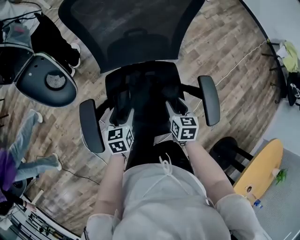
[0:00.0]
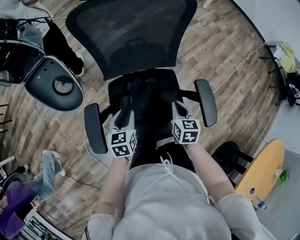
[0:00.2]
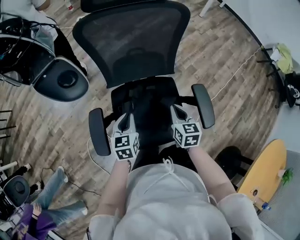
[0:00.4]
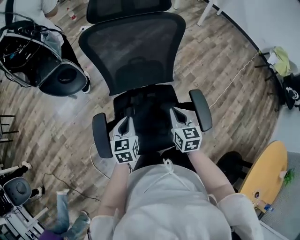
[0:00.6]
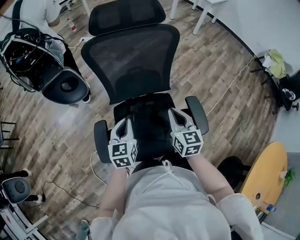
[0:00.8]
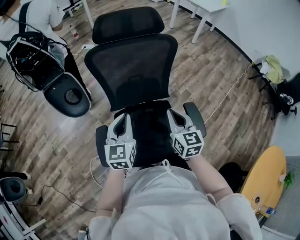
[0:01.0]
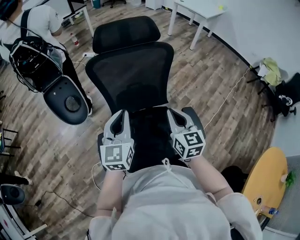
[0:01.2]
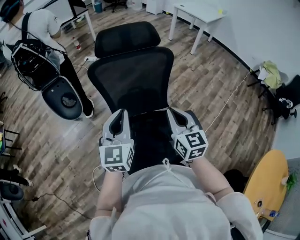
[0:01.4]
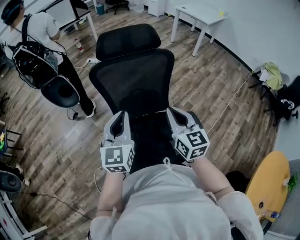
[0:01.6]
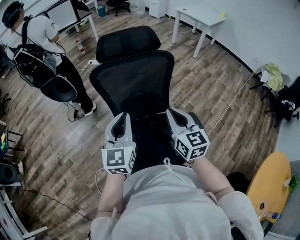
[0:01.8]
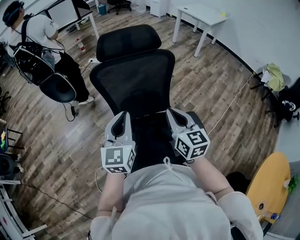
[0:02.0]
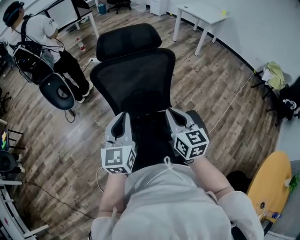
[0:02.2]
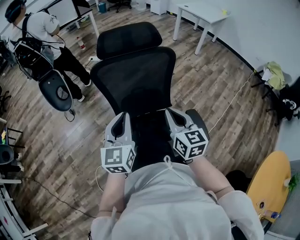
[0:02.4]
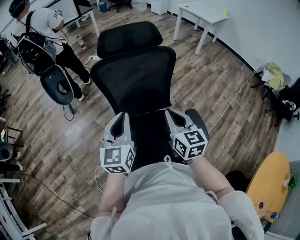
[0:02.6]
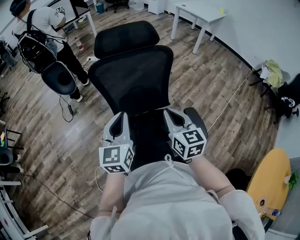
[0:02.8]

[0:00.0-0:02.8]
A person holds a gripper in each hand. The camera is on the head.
0:00.0 to 0:01.4: The grippers both shift upward by about 40 cm. The right gripper tips its fingers upward by some 40 degrees, and closes its fingers. The left gripper points its fingers some 40 degrees further upward, and closes.
0:01.4 to 0:02.8: The grippers stay close to where they were, moving slightly.

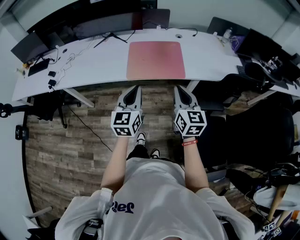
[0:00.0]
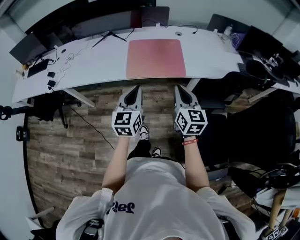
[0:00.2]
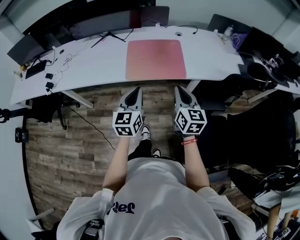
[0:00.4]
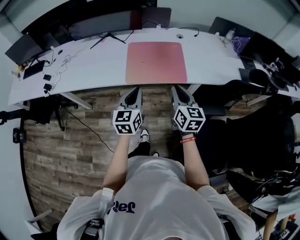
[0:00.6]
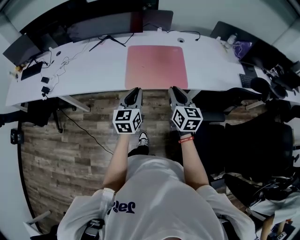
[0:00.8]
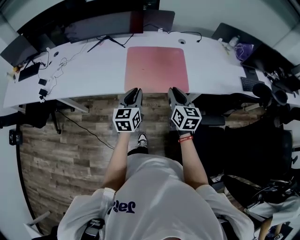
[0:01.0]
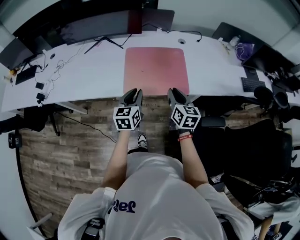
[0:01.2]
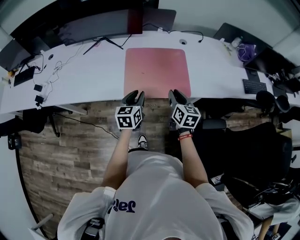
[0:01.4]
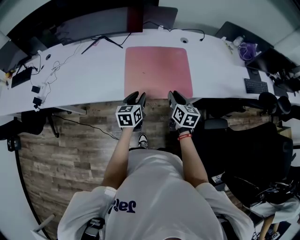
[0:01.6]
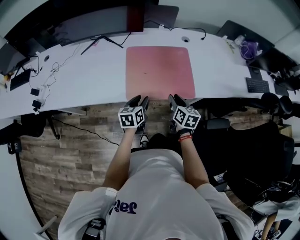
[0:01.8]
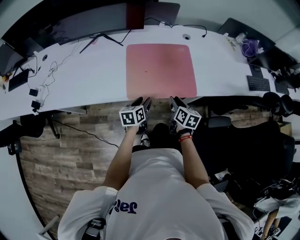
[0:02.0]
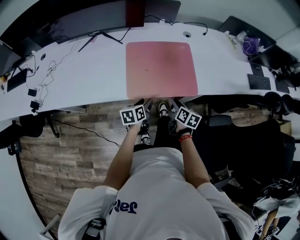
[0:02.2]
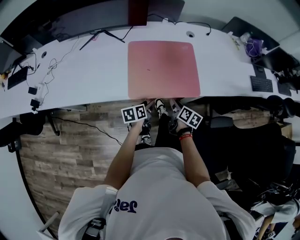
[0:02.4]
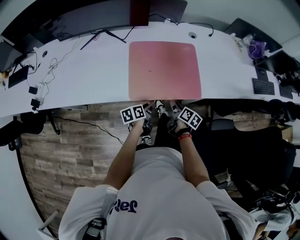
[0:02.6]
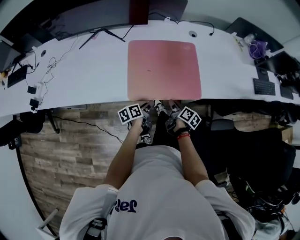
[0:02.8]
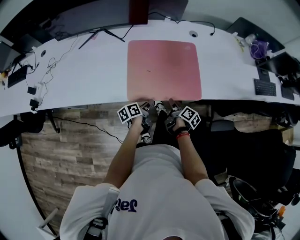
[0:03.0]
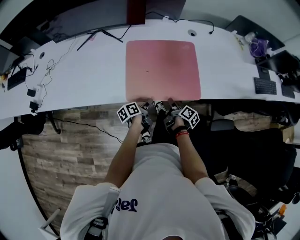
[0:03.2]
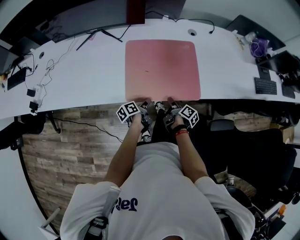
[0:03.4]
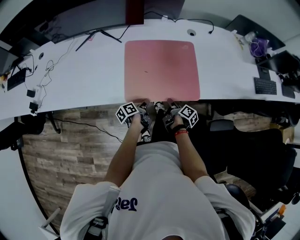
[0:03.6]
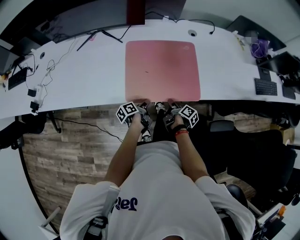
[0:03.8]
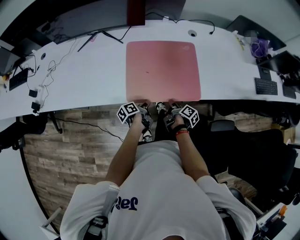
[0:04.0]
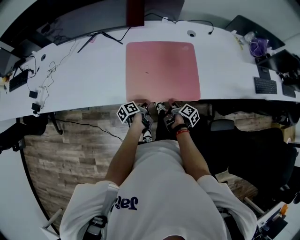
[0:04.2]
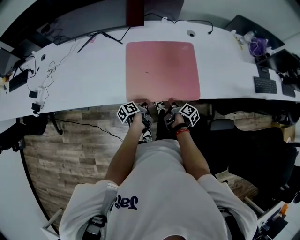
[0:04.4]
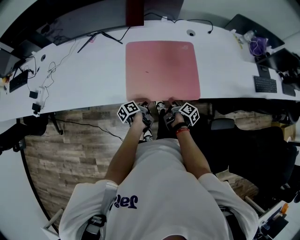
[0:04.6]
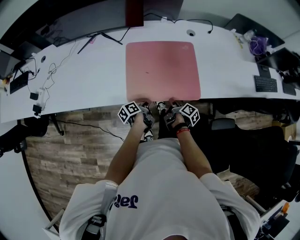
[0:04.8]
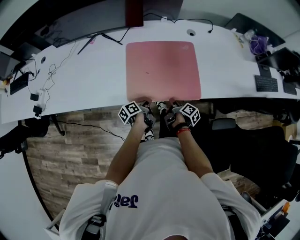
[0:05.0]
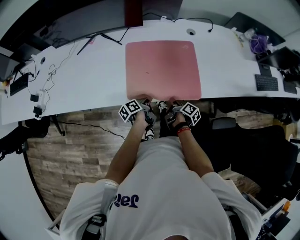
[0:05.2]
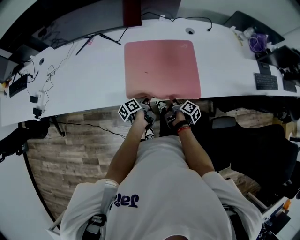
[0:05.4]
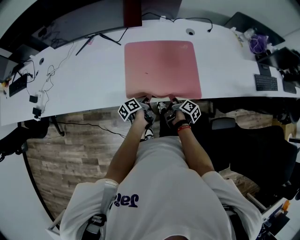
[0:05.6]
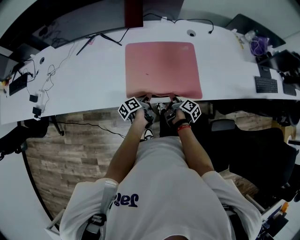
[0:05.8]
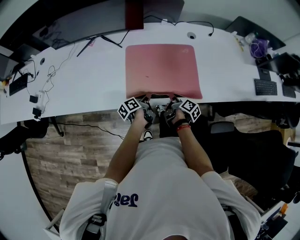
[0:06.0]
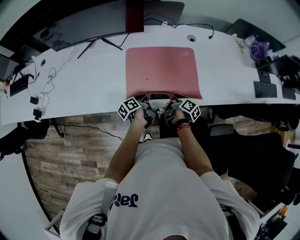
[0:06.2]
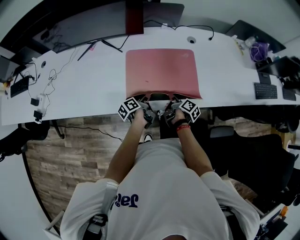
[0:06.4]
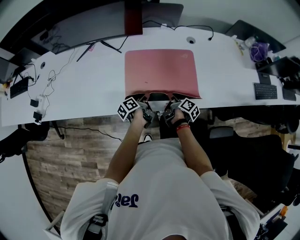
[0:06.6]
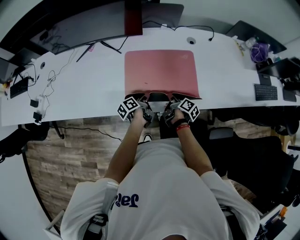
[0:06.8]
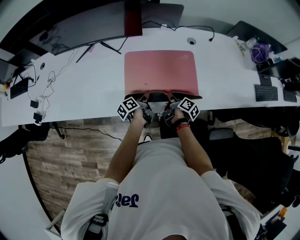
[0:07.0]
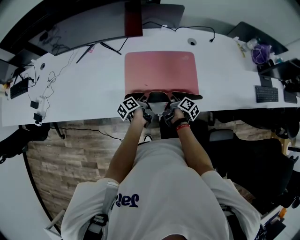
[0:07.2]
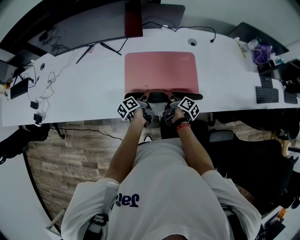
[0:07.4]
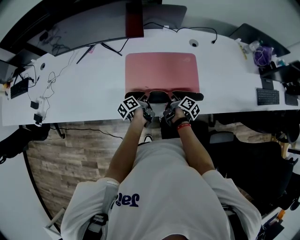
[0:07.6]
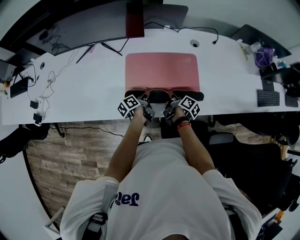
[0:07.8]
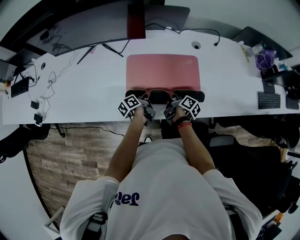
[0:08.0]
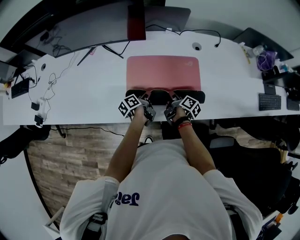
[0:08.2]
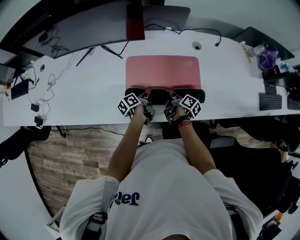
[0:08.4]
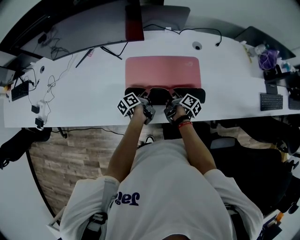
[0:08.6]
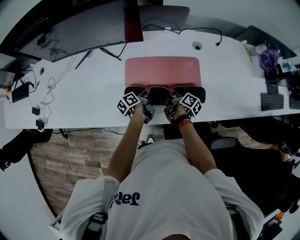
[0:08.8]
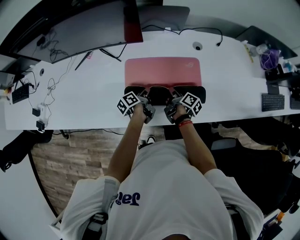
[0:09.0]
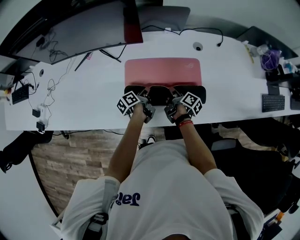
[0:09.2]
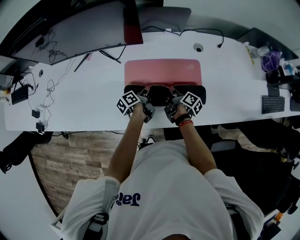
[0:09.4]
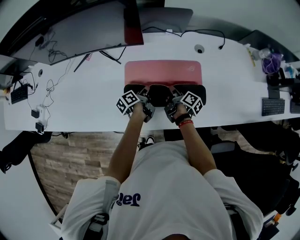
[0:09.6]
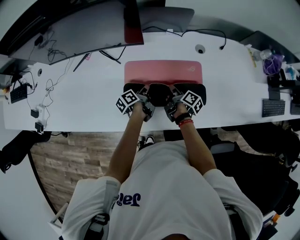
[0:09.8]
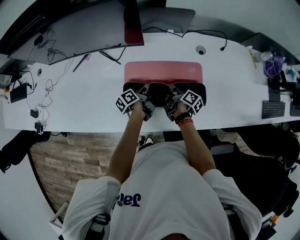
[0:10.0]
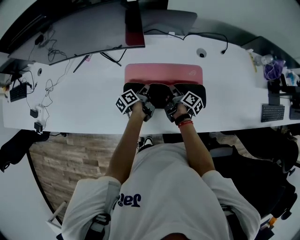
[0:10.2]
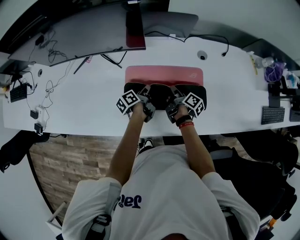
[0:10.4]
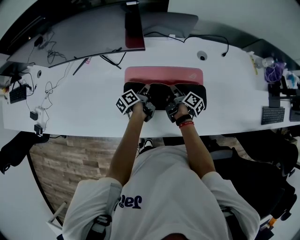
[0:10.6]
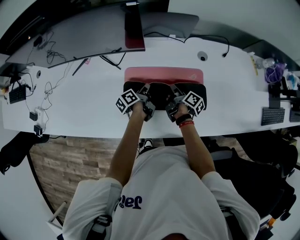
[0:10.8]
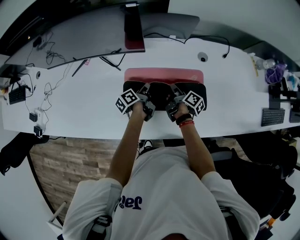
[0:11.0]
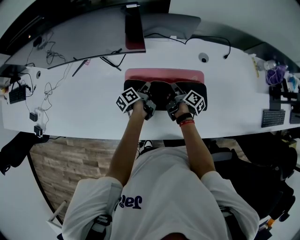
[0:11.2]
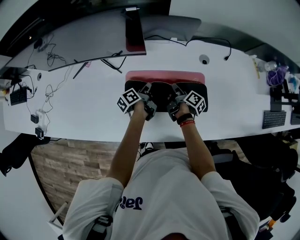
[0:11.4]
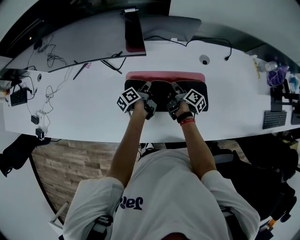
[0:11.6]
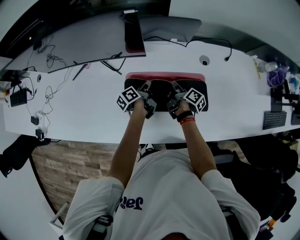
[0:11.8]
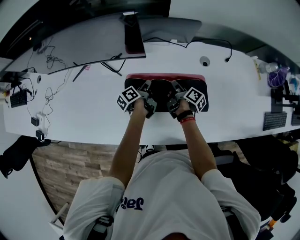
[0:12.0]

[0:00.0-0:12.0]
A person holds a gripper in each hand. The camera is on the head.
0:00.0 to 0:01.6: The right gripper moves roughly 35 cm, changes its angle by approximately 20 degrees, and opens.
0:01.6 to 0:03.0: The right gripper heads downward, covering about 20 cm, and twists about 50 degrees clockwise, seen from behind.
0:03.0 to 0:04.4: The right gripper closes.
0:04.4 to 0:06.0: The right gripper shifts by approximately 5 cm.
0:06.0 to 0:07.6: The right gripper moves approximately 10 cm.
0:07.6 to 0:09.0: The right gripper shifts by approximately 10 cm.
0:09.0 to 0:10.4: The right gripper ends up roughly 10 cm from where it was.
0:10.4 to 0:12.0: The right gripper changes place by roughly 10 cm.

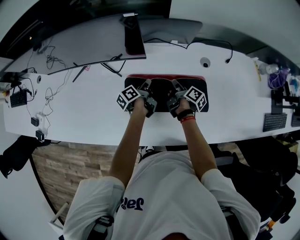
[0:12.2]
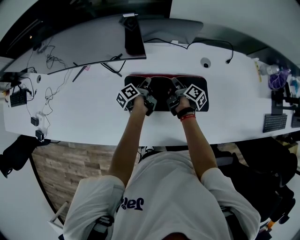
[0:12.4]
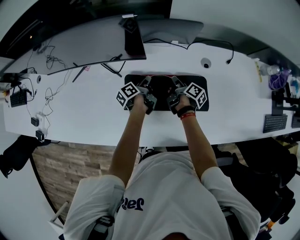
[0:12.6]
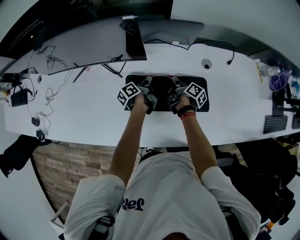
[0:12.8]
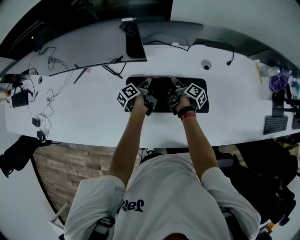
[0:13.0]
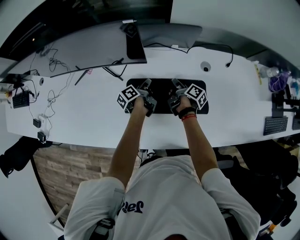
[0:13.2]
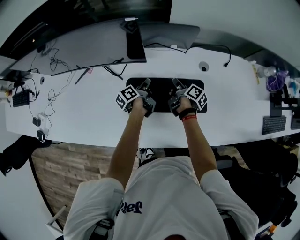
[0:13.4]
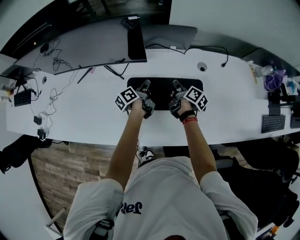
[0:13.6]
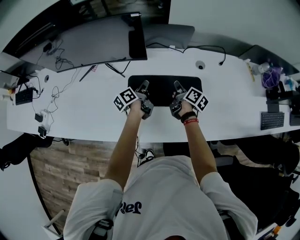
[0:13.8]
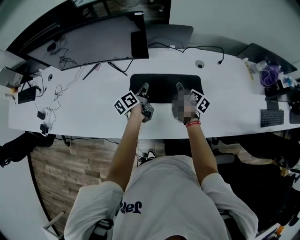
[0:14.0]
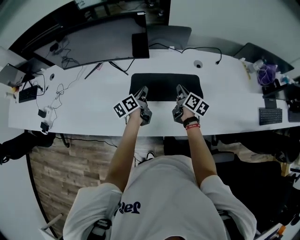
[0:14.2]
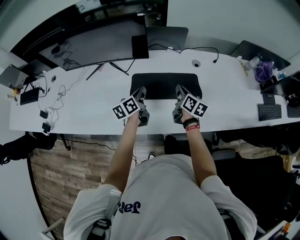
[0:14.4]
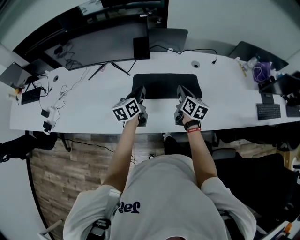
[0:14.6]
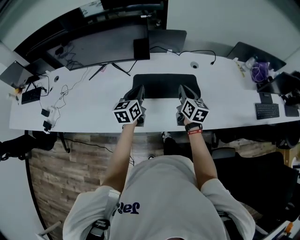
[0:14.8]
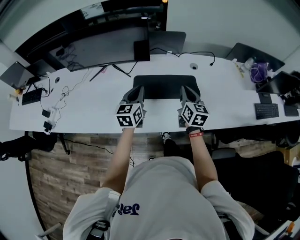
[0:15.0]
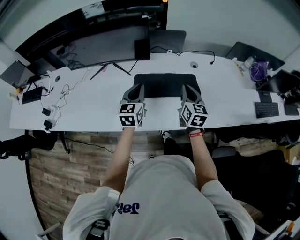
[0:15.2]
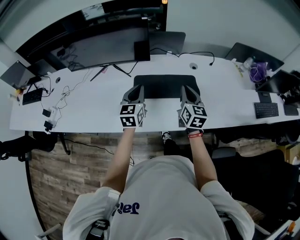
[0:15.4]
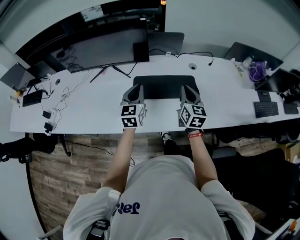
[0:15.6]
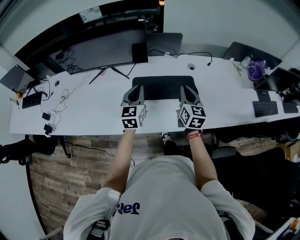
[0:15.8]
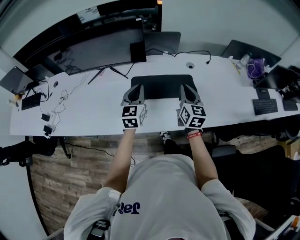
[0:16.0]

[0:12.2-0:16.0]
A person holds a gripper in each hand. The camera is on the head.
0:13.4 to 0:14.8: The right gripper ends up approximately 30 cm from where it was, and rolls counterclockwise, seen from behind, by roughly 50 degrees.
0:14.8 to 0:16.0: The right gripper shifts by about 5 cm.

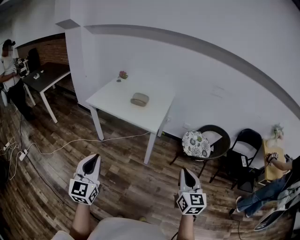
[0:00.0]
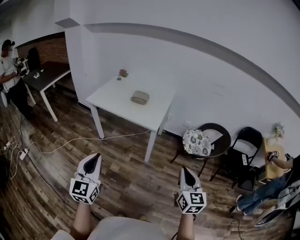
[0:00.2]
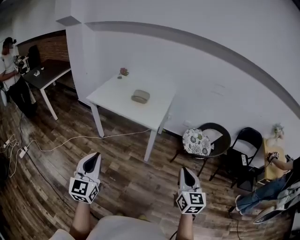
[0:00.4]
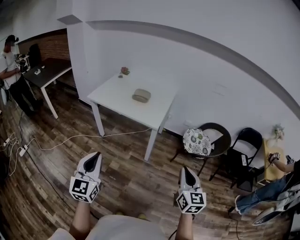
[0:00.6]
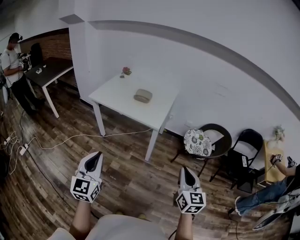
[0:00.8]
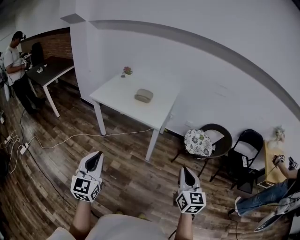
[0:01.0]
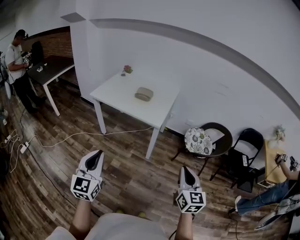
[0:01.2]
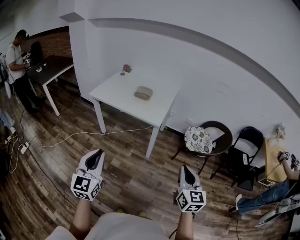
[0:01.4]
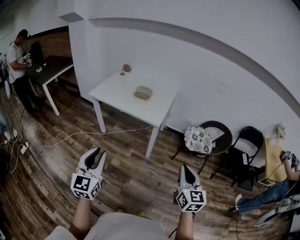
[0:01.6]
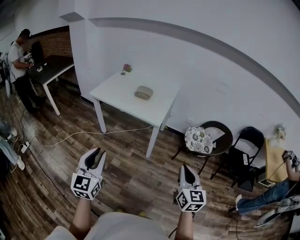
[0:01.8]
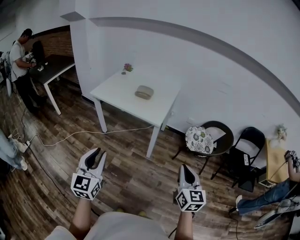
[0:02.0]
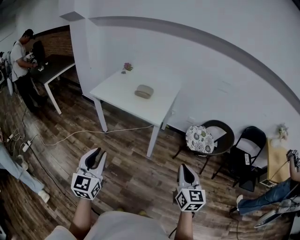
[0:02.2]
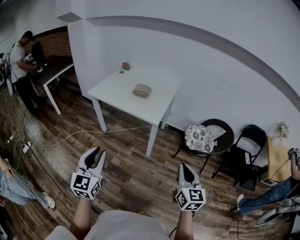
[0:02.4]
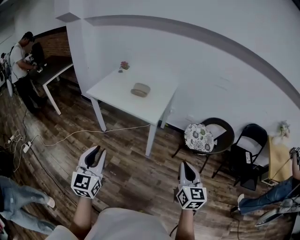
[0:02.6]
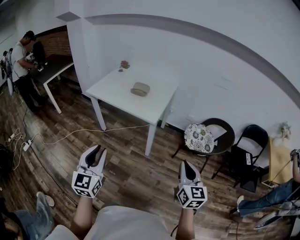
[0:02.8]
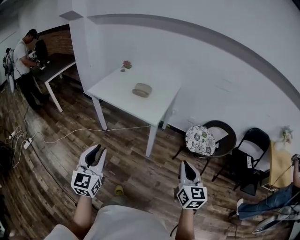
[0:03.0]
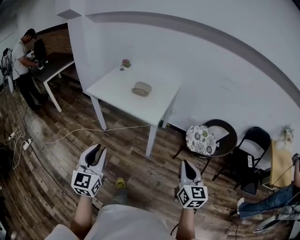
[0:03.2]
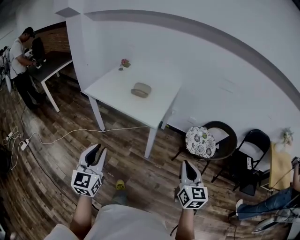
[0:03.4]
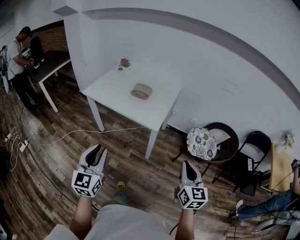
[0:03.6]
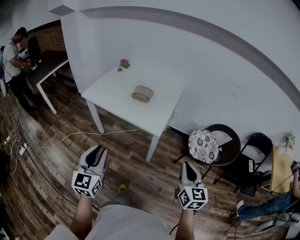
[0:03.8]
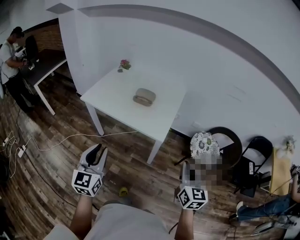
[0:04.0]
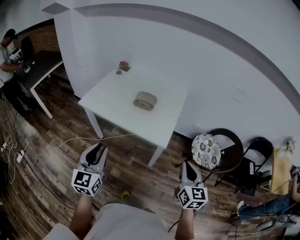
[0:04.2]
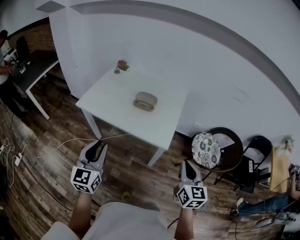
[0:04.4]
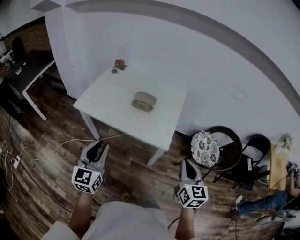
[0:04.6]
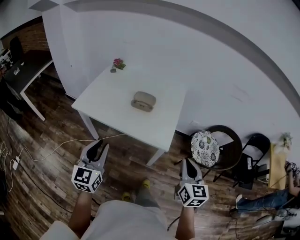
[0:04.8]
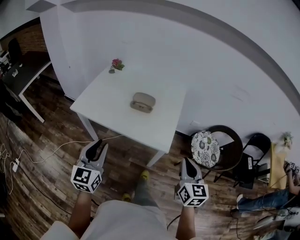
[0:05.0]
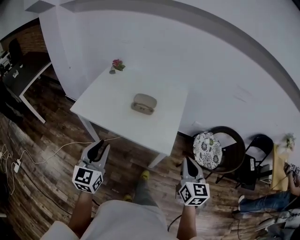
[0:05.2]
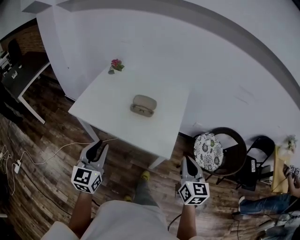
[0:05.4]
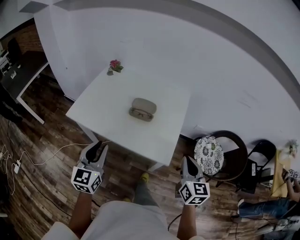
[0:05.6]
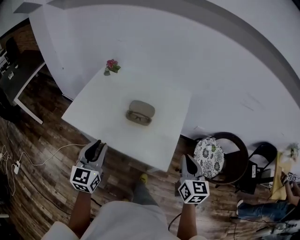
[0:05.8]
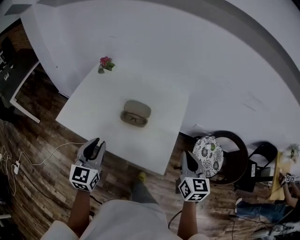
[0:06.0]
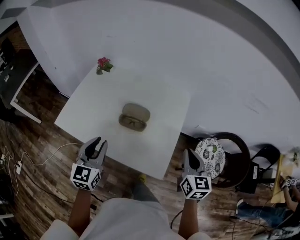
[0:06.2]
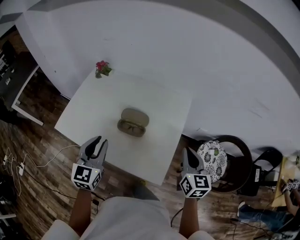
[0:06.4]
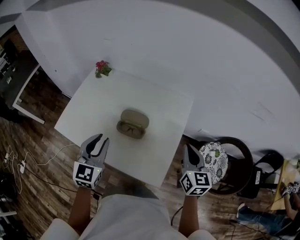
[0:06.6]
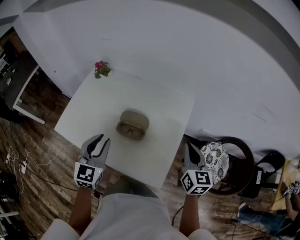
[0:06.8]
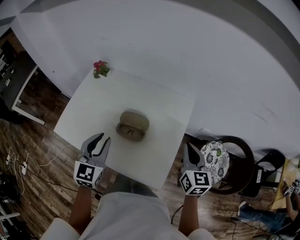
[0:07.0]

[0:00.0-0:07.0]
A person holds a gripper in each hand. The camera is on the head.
0:00.0 to 0:01.4: The grippers make only small movements.
0:01.4 to 0:02.8: Both grippers move to the right, about 5 cm.
0:02.8 to 0:04.2: The two grippers go roughly 30 cm forward and to the left.
0:04.2 to 0:05.6: The grippers both shift forward by approximately 20 cm.
0:05.6 to 0:07.0: Both grippers move forward, about 25 cm.
